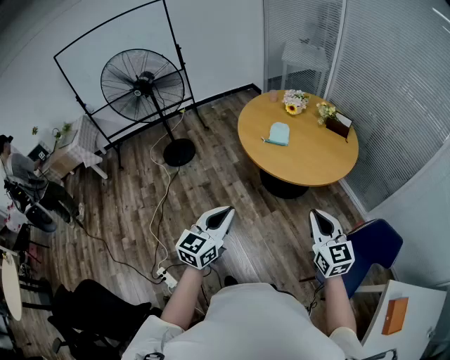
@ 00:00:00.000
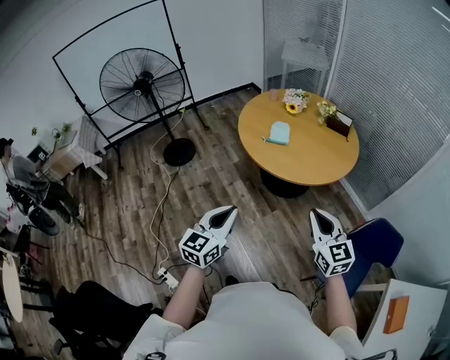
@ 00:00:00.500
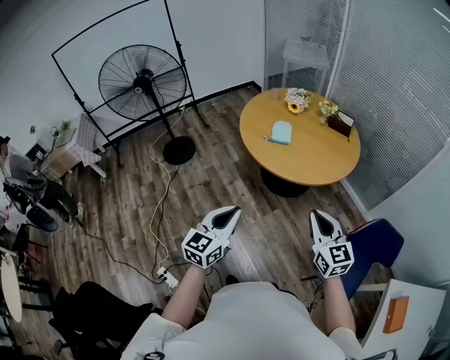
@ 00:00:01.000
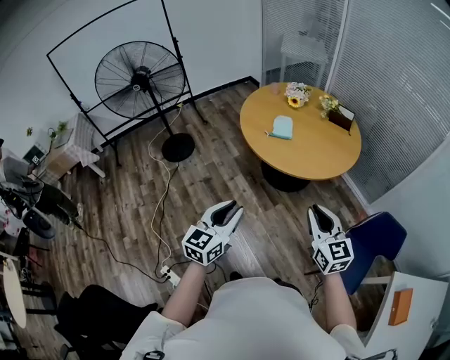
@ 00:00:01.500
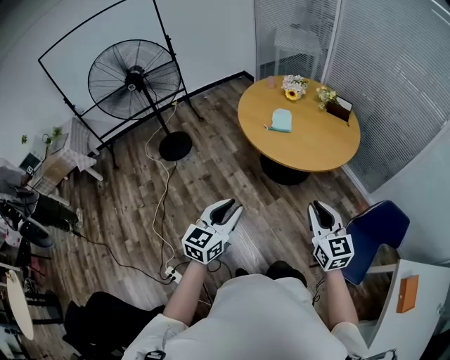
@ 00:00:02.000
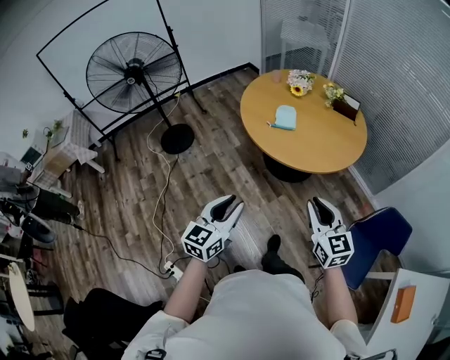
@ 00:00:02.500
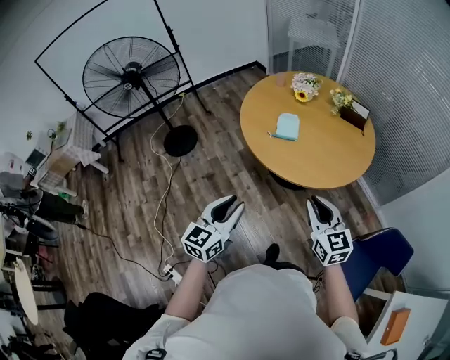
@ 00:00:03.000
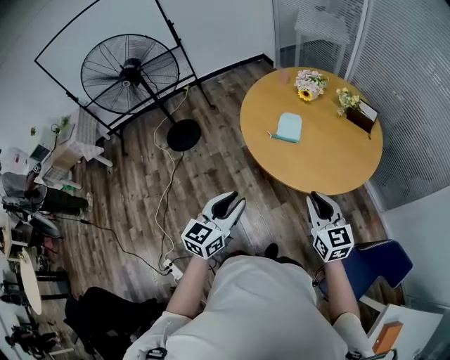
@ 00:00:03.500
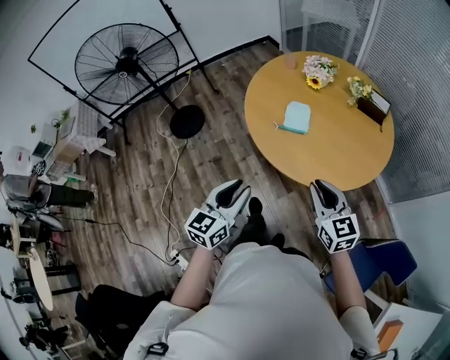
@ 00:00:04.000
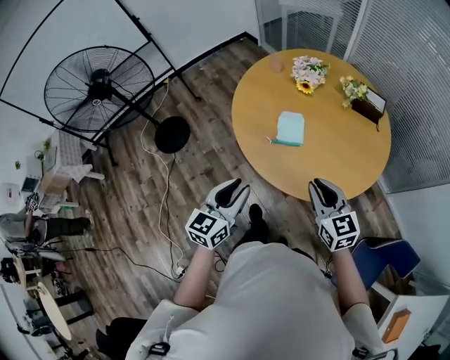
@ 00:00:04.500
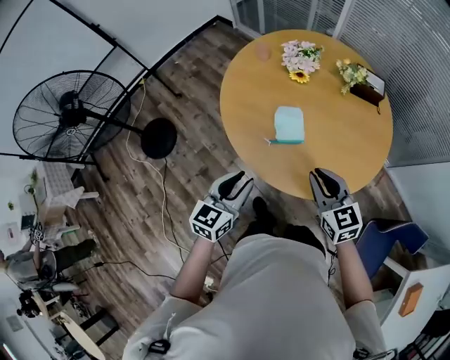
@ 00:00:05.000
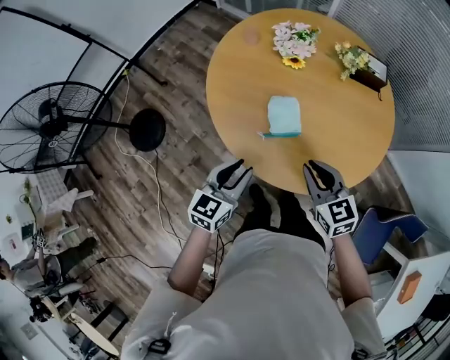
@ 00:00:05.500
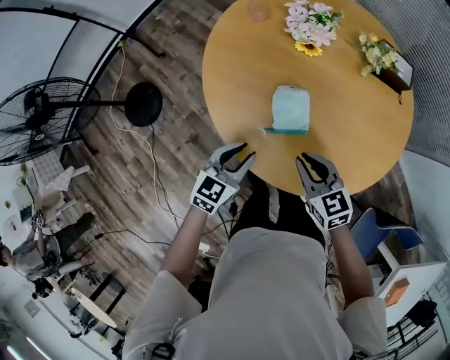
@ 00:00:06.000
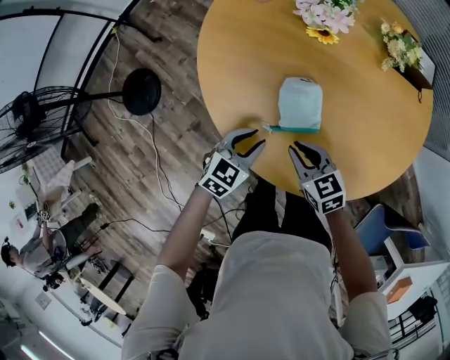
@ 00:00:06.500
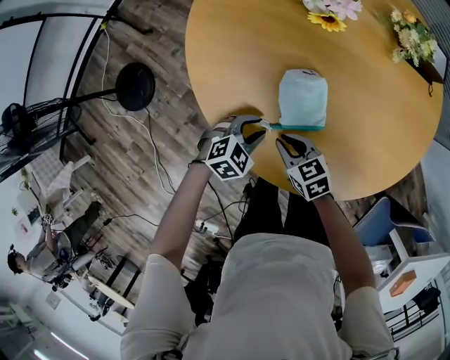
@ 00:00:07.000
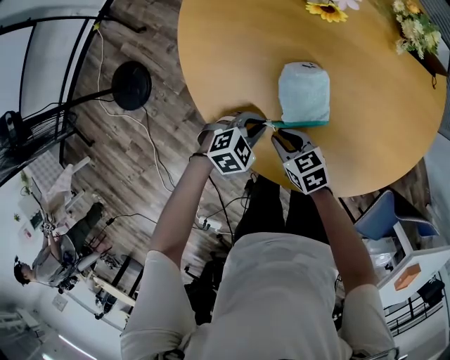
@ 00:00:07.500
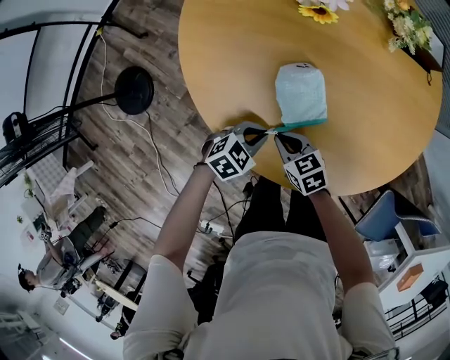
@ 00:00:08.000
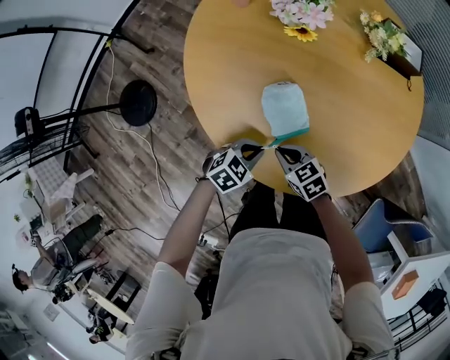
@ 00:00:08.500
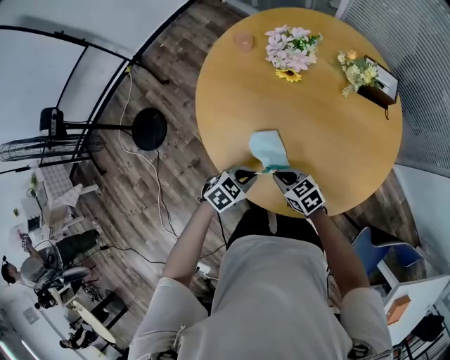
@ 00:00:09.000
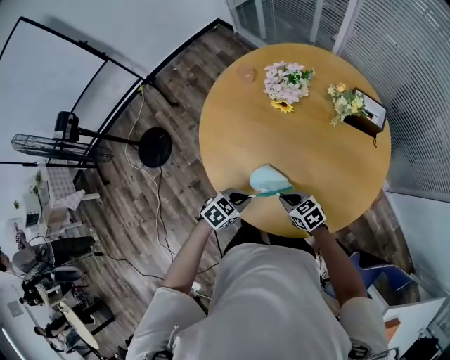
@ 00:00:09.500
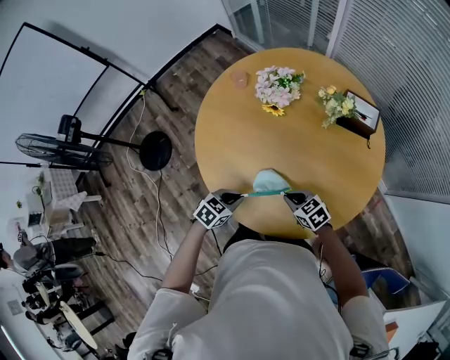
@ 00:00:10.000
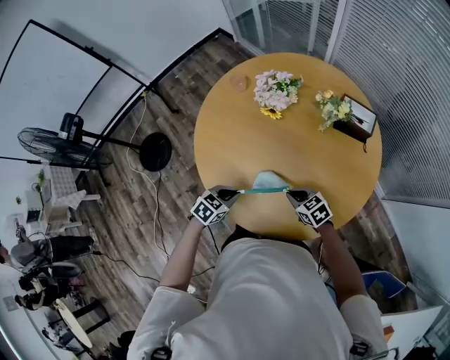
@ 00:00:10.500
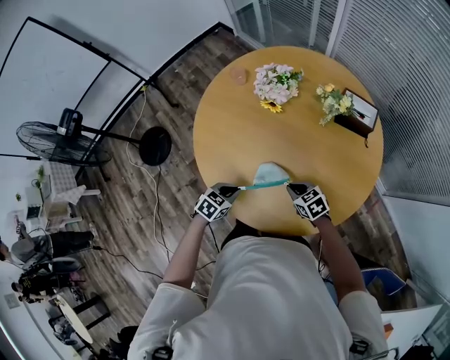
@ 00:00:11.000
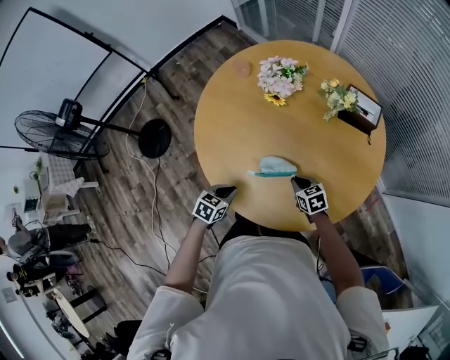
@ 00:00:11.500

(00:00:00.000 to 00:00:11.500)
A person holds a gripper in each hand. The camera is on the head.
00:00:00.000 - 00:00:02.000: The grippers both shift to the left by about 5 cm.
00:00:02.000 - 00:00:04.000: Both grippers travel together forward, about 35 cm.
00:00:04.000 - 00:00:06.000: The two grippers go about 40 cm forward and downward. The left gripper changes its angle by approximately 30 degrees; the right gripper turns by roughly 20 degrees.
00:00:06.000 - 00:00:07.500: Both grippers travel together downward, approximately 25 cm. The left gripper changes its angle by approximately 40 degrees. The right gripper swivels roughly 20 degrees.
00:00:07.500 - 00:00:09.500: The right gripper ends up approximately 20 cm from where it was; the left gripper travels upward by some 20 cm, and rotates roughly 30 degrees.
00:00:09.500 - 00:00:11.500: The left gripper changes its angle by some 20 degrees; the right gripper moves approximately 10 cm.

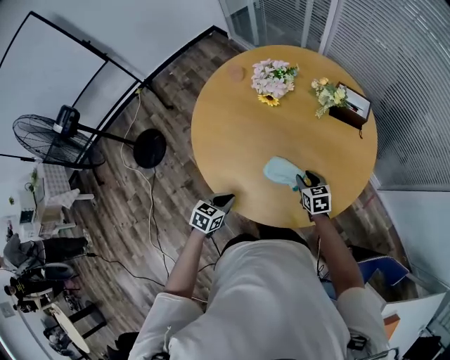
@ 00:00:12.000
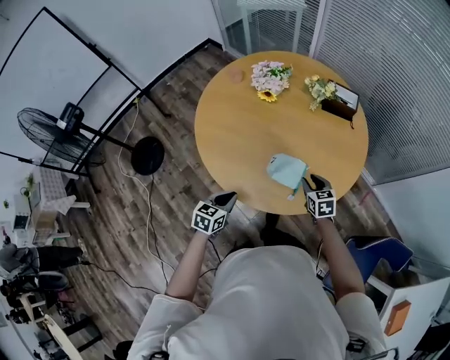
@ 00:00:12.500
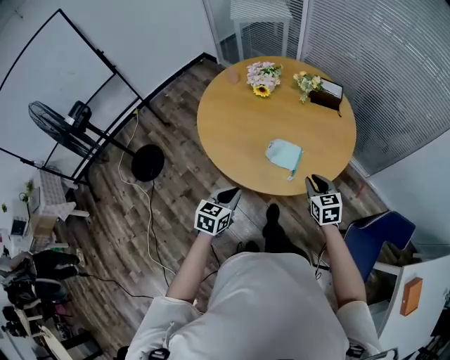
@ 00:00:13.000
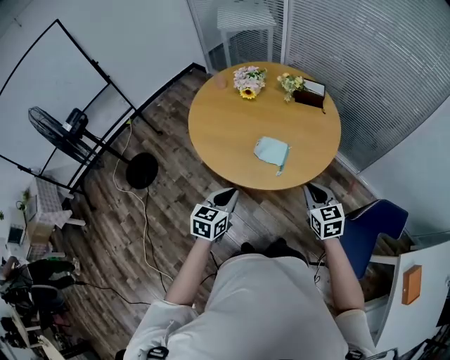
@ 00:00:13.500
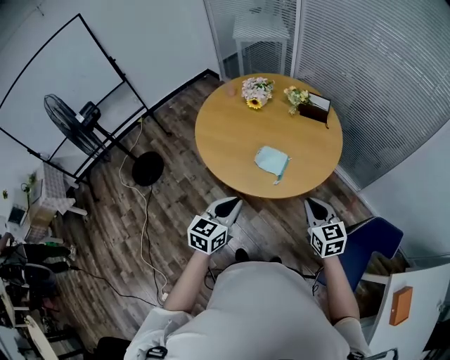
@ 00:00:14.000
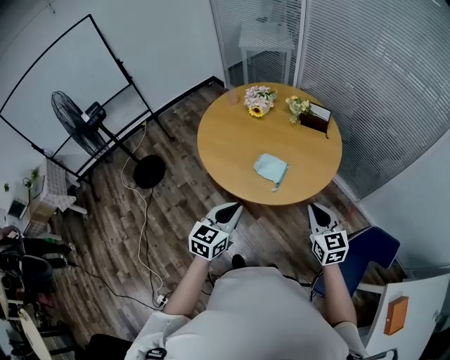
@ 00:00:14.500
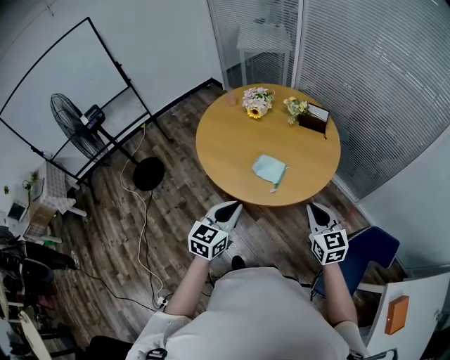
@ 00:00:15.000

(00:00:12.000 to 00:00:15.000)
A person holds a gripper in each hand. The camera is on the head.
00:00:12.000 - 00:00:13.500: The two grippers go approximately 35 cm backward and upward. The left gripper rotates approximately 20 degrees; the right gripper turns by some 20 degrees, and closes its fingers.
00:00:13.500 - 00:00:15.000: The two grippers go some 10 cm upward and to the right.

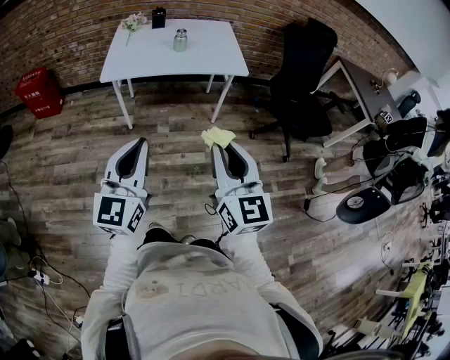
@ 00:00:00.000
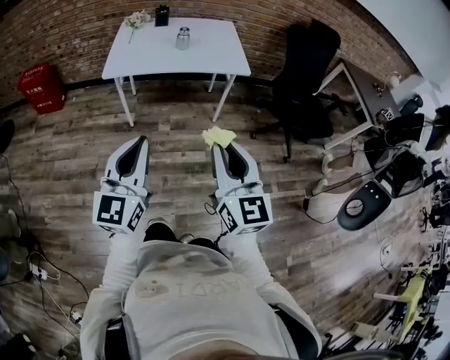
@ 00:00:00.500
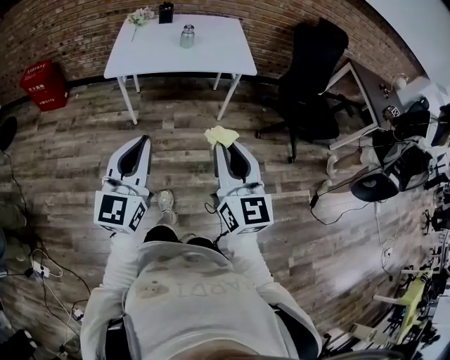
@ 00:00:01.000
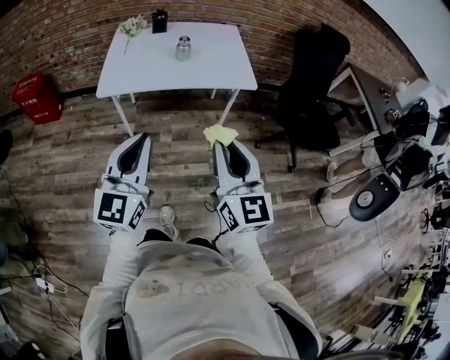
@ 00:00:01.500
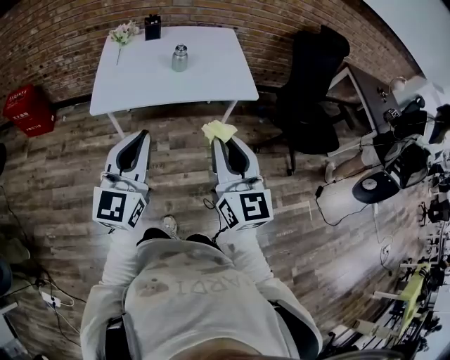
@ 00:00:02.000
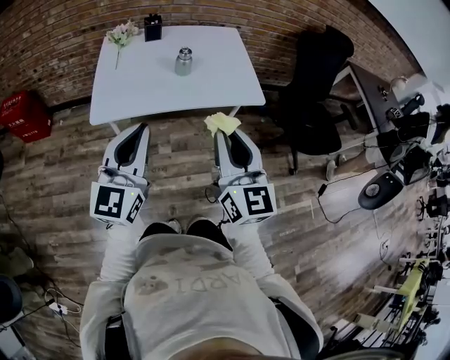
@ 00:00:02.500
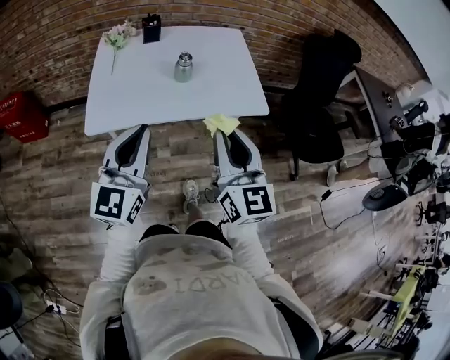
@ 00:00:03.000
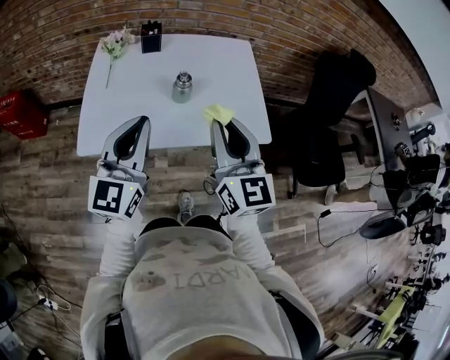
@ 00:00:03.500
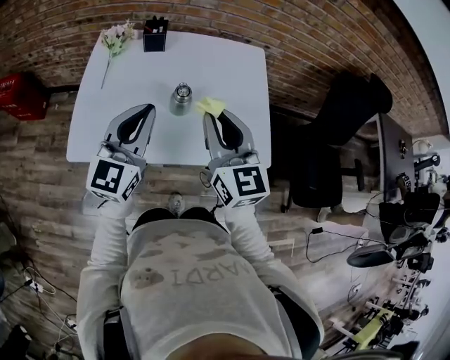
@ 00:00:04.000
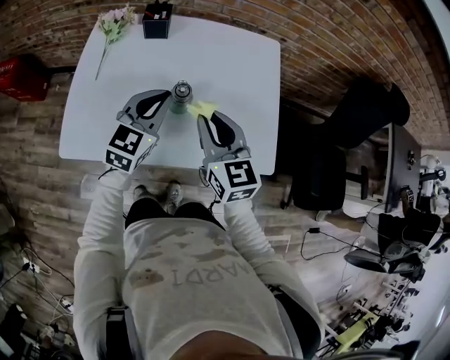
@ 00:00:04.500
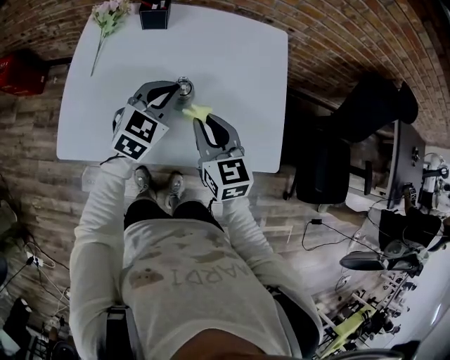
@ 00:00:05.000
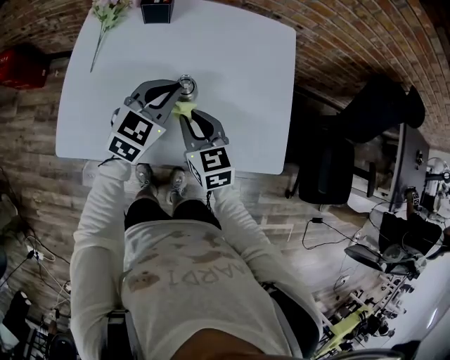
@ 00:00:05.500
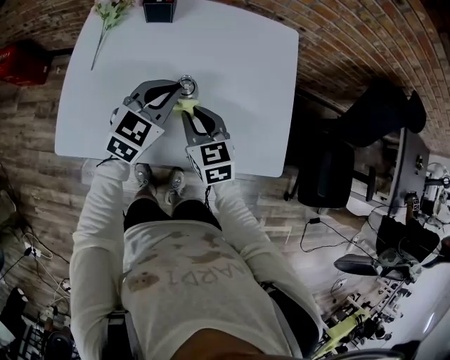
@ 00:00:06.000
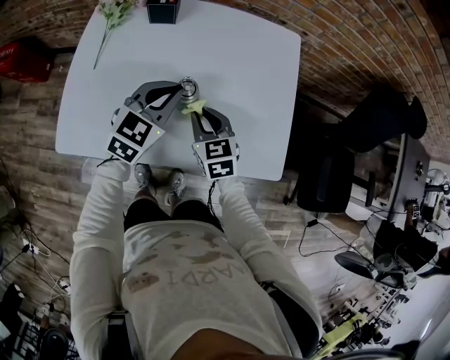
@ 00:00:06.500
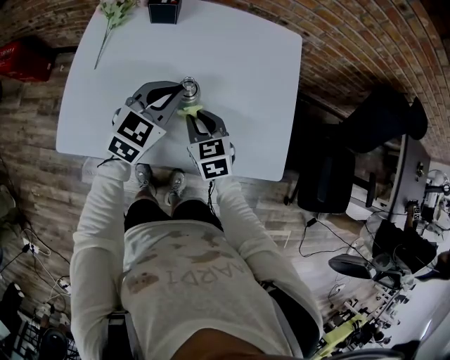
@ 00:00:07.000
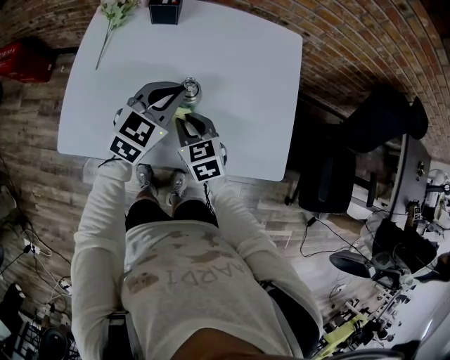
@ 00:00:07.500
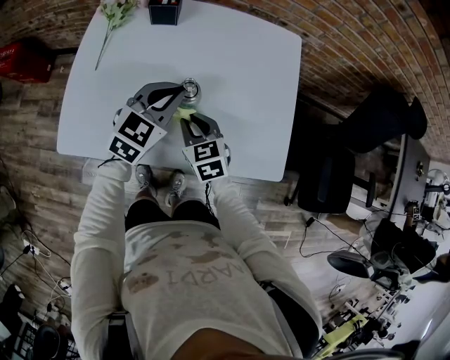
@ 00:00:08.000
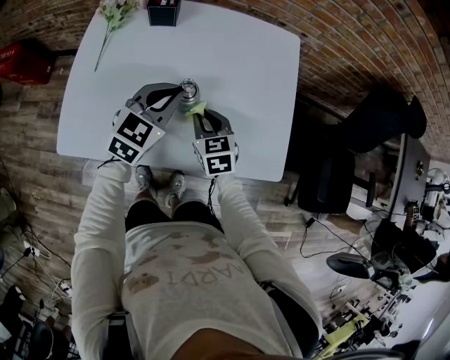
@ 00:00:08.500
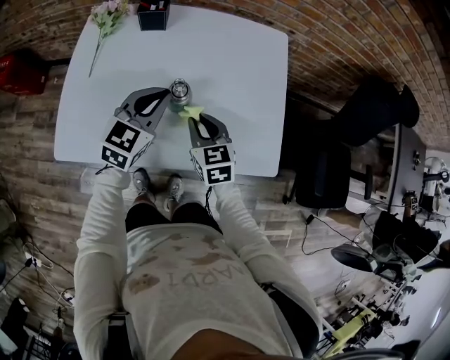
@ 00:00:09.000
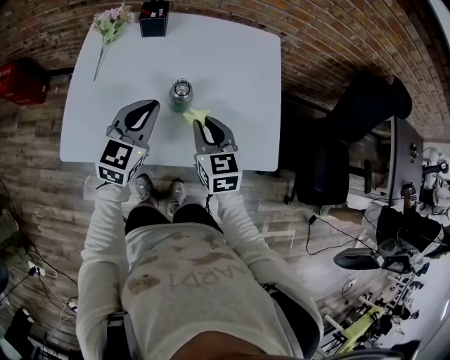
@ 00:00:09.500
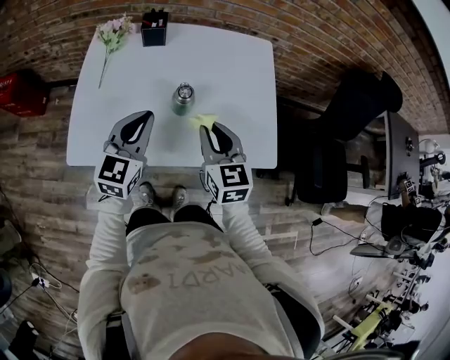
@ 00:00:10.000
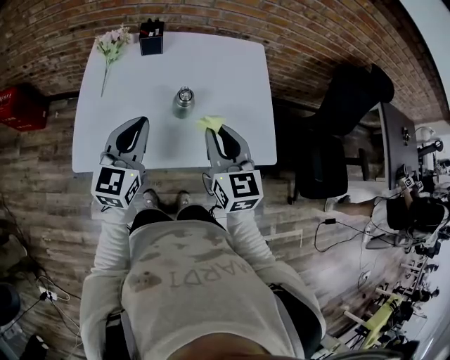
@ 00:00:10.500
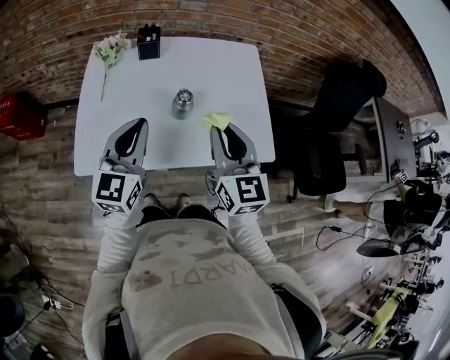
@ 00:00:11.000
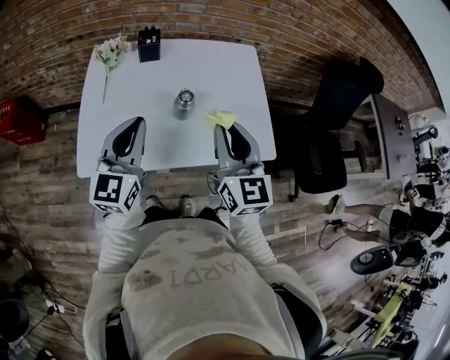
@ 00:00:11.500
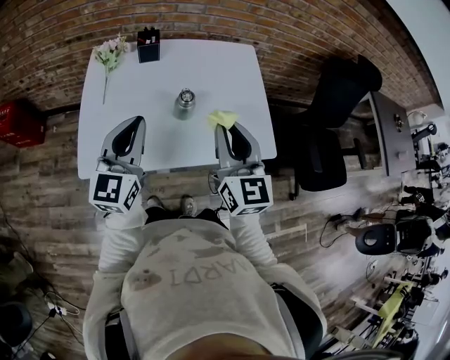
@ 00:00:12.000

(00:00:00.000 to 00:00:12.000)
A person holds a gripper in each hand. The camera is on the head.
00:00:00.000 - 00:00:02.000: The grippers both shift forward by about 25 cm.
00:00:02.000 - 00:00:04.000: The two grippers travel together, forward, roughly 40 cm.
00:00:04.000 - 00:00:06.000: The grippers both shift downward and forward by approximately 25 cm. The right gripper swivels approximately 30 degrees. The left gripper changes its angle by roughly 30 degrees.
00:00:06.000 - 00:00:08.000: There are only small adjustments of the grippers.
00:00:08.000 - 00:00:10.000: The right gripper moves upward, about 15 cm, and rotates some 20 degrees. Meanwhile the left gripper travels backward, to the left and upward by some 15 cm.
00:00:10.000 - 00:00:12.000: The left gripper travels upward by about 10 cm. The right gripper moves upward and backward, approximately 15 cm.
